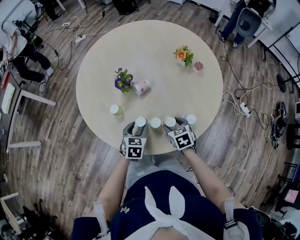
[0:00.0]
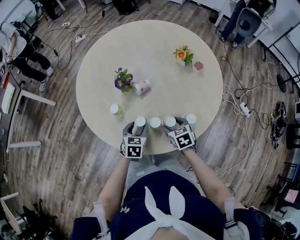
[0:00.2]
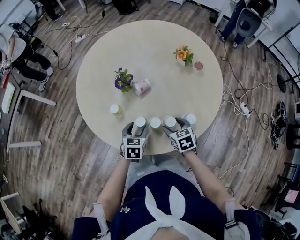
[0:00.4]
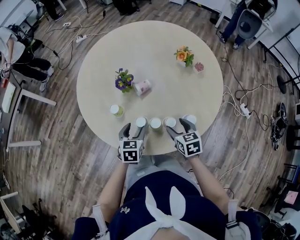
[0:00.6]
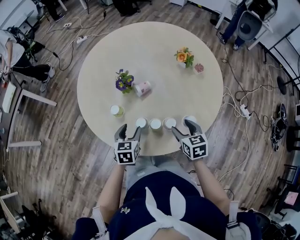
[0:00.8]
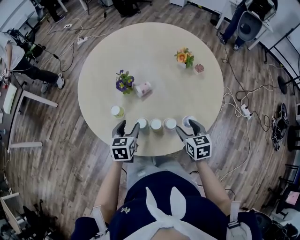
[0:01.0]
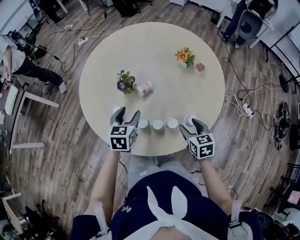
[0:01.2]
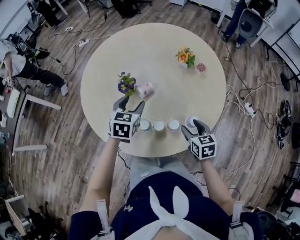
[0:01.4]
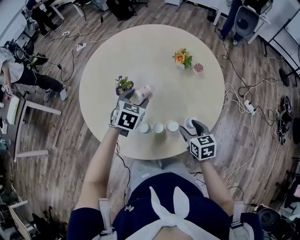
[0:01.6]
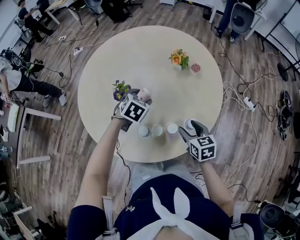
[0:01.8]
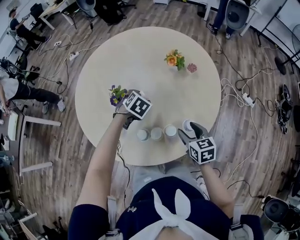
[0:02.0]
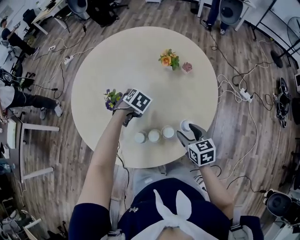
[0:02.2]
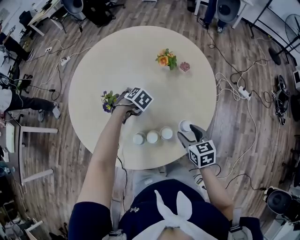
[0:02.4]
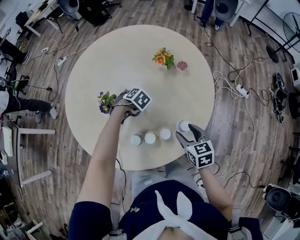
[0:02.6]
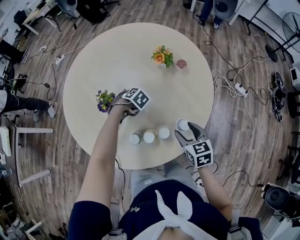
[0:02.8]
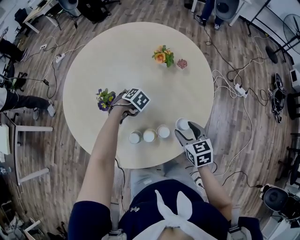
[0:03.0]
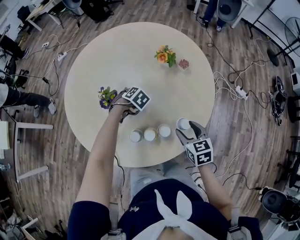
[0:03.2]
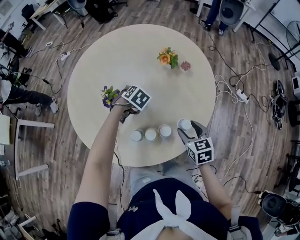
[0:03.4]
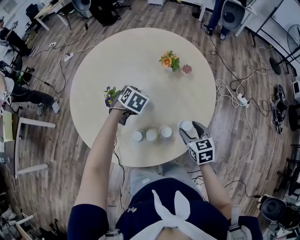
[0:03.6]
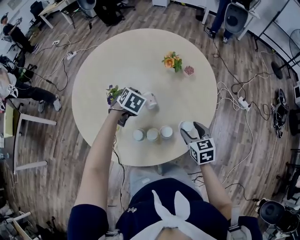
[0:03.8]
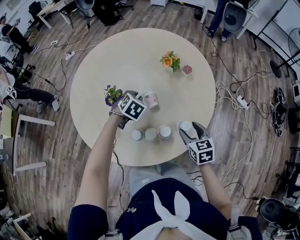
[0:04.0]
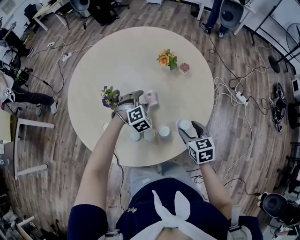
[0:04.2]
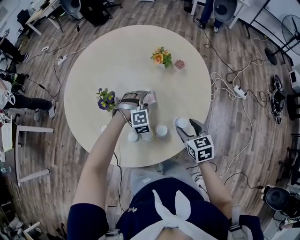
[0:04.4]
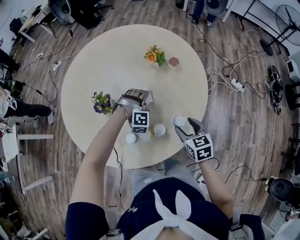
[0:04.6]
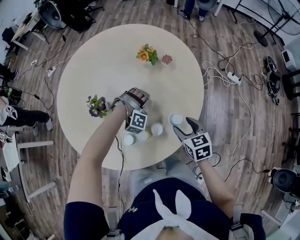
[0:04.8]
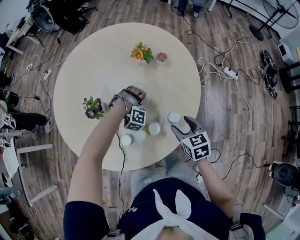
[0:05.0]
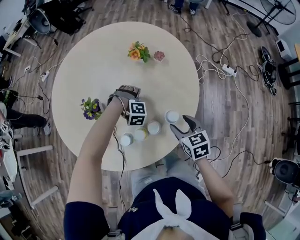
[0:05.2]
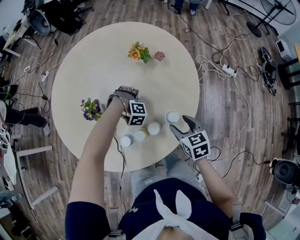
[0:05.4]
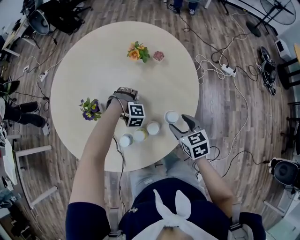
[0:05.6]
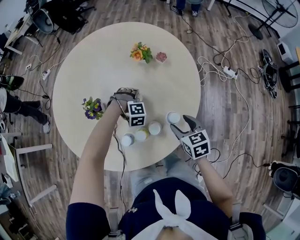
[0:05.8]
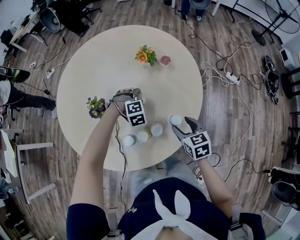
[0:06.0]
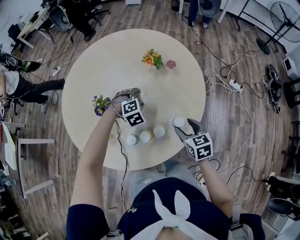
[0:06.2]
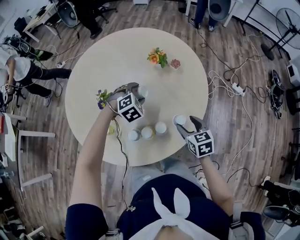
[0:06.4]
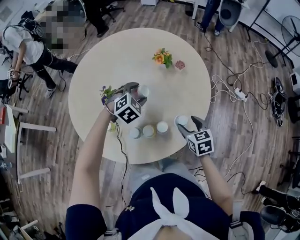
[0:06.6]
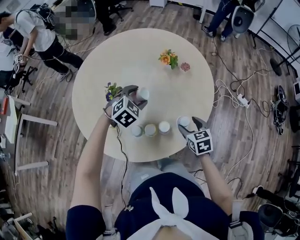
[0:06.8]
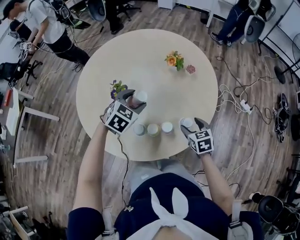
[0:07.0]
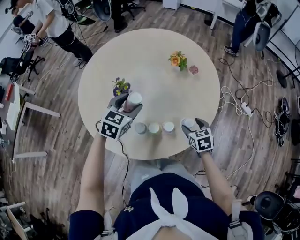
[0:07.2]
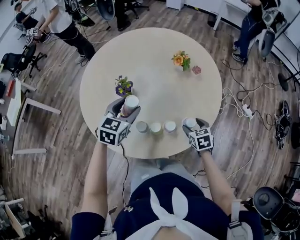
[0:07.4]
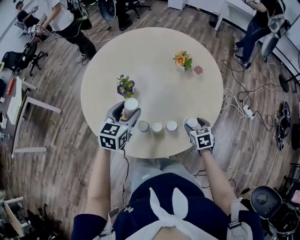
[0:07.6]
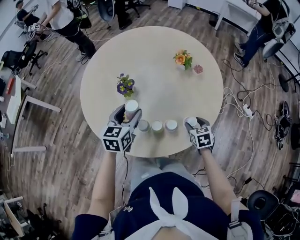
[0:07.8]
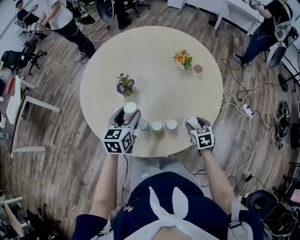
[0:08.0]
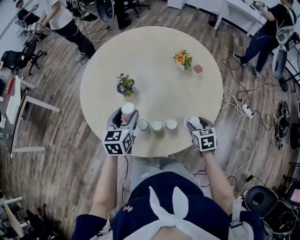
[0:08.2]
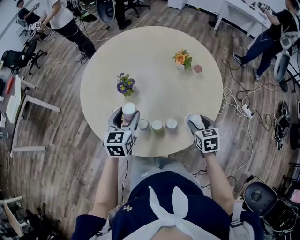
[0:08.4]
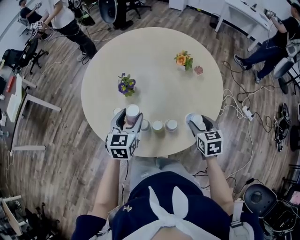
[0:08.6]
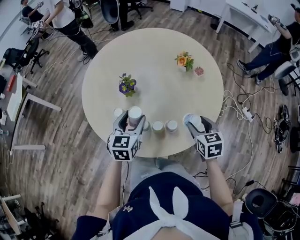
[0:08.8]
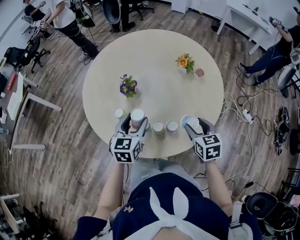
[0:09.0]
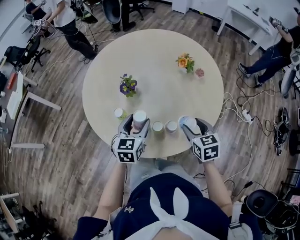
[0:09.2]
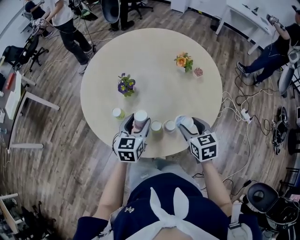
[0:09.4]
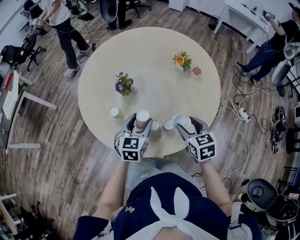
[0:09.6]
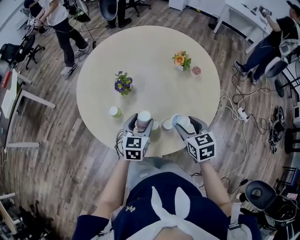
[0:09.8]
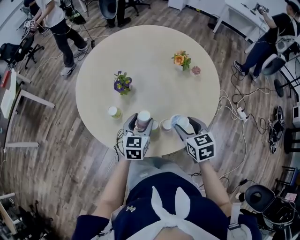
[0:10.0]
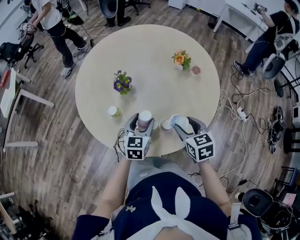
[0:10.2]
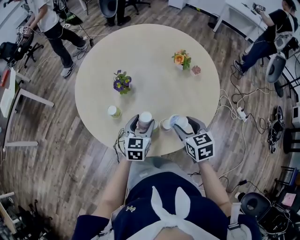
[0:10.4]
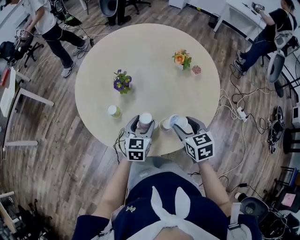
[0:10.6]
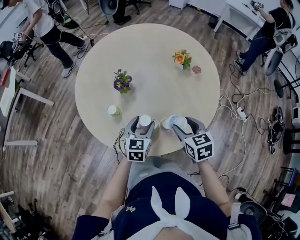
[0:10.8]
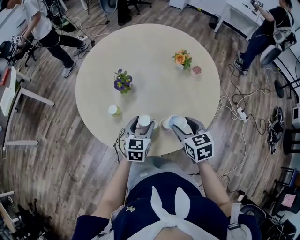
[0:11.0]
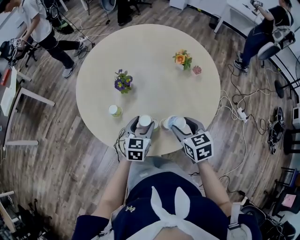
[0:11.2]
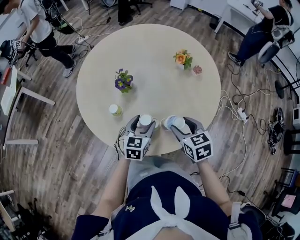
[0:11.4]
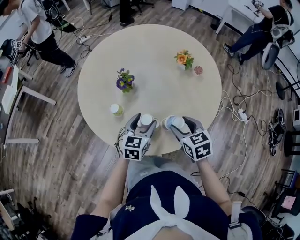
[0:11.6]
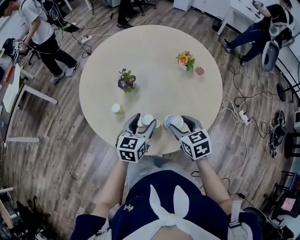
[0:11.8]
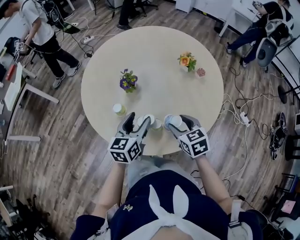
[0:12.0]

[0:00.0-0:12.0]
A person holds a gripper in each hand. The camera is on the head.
0:00.0 to 0:01.6: The right gripper travels upward and to the right by approximately 10 cm, while the left gripper is displaced forward and upward by some 20 cm, and turns by roughly 20 degrees.
0:01.6 to 0:03.0: The left gripper shifts roughly 15 cm downward, and points its fingers roughly 30 degrees further downward.
0:03.0 to 0:04.4: The left gripper changes place by some 10 cm, rolls clockwise, seen from behind, by approximately 40 degrees, and closes and opens again.
0:04.4 to 0:06.0: The left gripper moves some 10 cm downward and comes back.
0:06.0 to 0:07.6: The right gripper moves downward, roughly 5 cm, while the left gripper goes about 25 cm upward, to the left and backward, and rolls counterclockwise, seen from behind, by some 80 degrees.
0:07.6 to 0:09.0: The right gripper travels upward by about 10 cm.
0:09.0 to 0:10.4: The left gripper travels downward and to the right by about 10 cm.
0:10.4 to 0:12.0: The left gripper heads upward, covering roughly 5 cm.

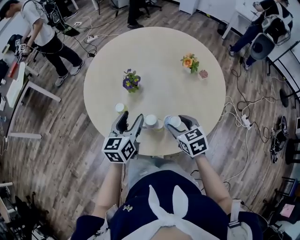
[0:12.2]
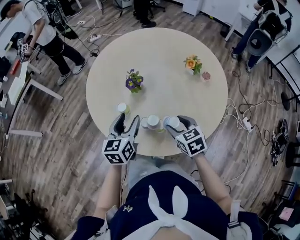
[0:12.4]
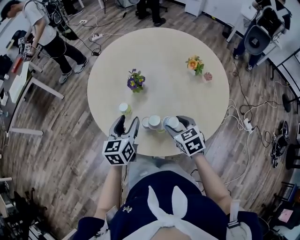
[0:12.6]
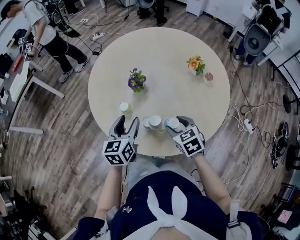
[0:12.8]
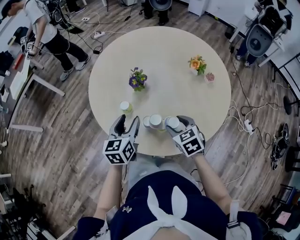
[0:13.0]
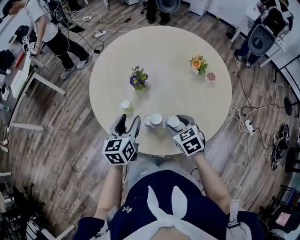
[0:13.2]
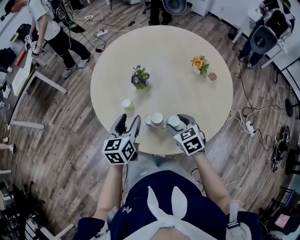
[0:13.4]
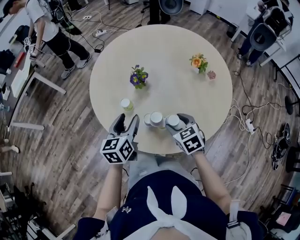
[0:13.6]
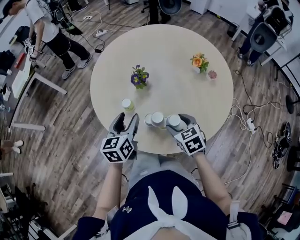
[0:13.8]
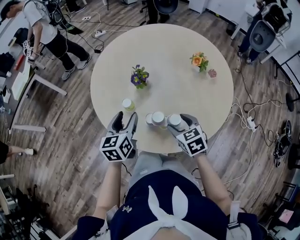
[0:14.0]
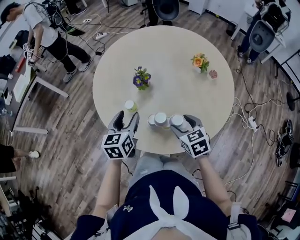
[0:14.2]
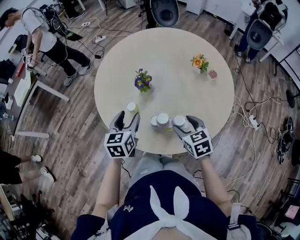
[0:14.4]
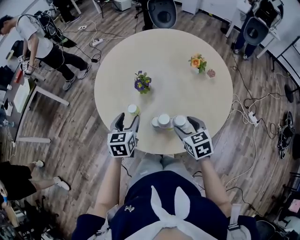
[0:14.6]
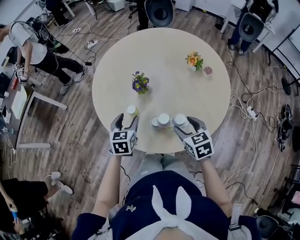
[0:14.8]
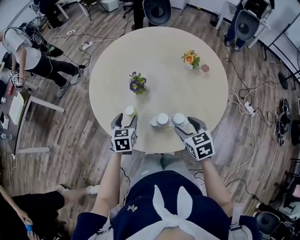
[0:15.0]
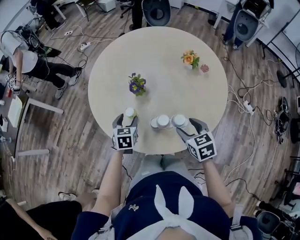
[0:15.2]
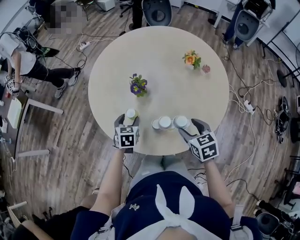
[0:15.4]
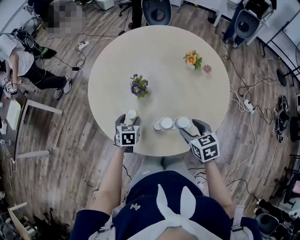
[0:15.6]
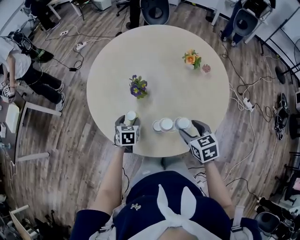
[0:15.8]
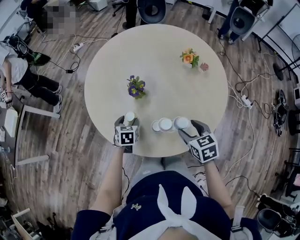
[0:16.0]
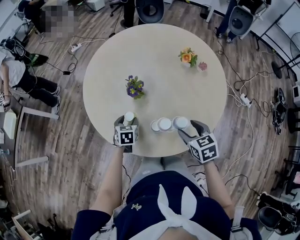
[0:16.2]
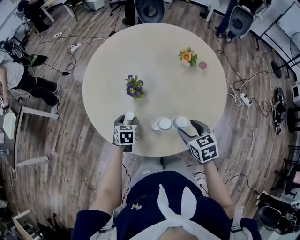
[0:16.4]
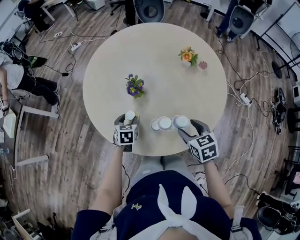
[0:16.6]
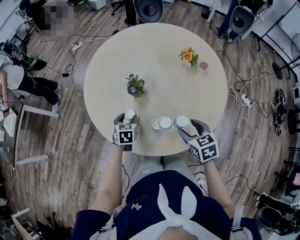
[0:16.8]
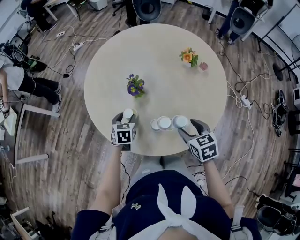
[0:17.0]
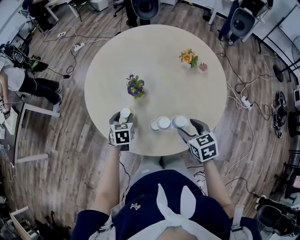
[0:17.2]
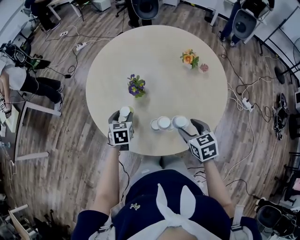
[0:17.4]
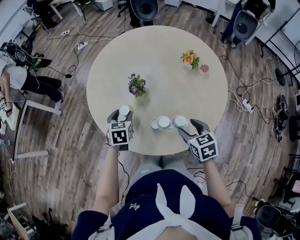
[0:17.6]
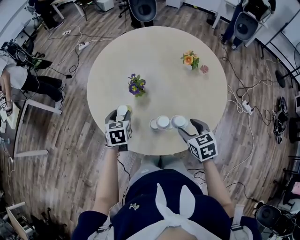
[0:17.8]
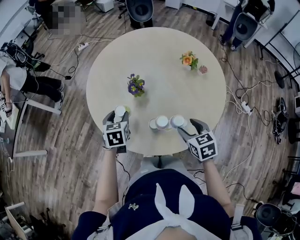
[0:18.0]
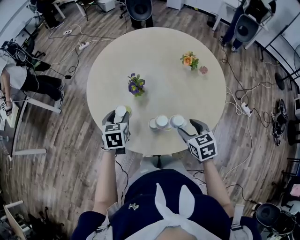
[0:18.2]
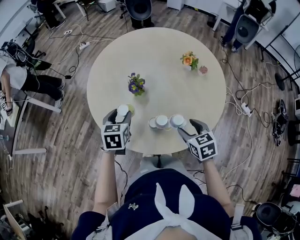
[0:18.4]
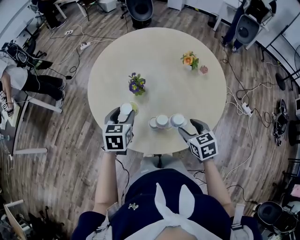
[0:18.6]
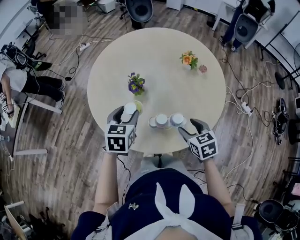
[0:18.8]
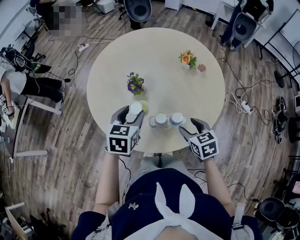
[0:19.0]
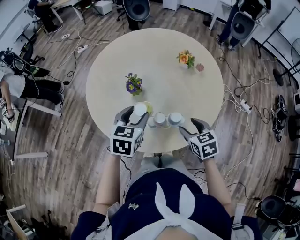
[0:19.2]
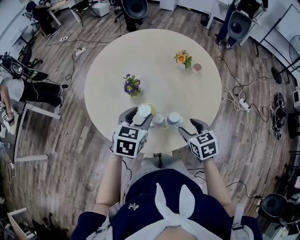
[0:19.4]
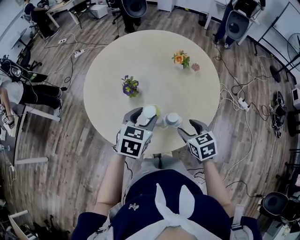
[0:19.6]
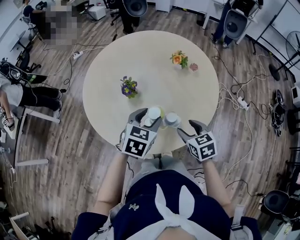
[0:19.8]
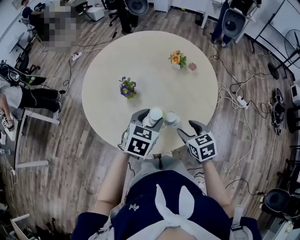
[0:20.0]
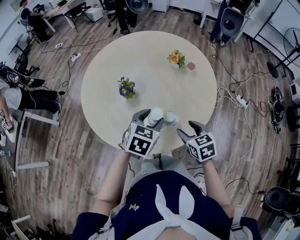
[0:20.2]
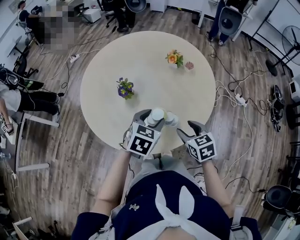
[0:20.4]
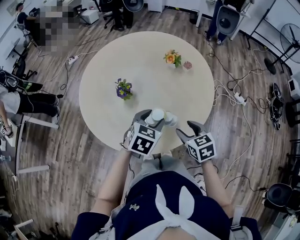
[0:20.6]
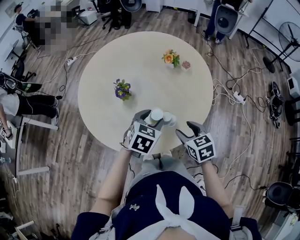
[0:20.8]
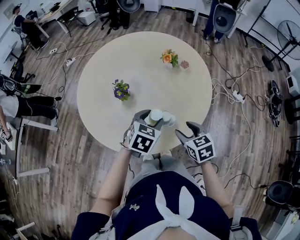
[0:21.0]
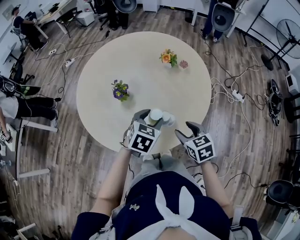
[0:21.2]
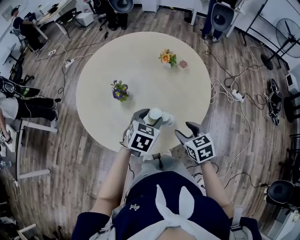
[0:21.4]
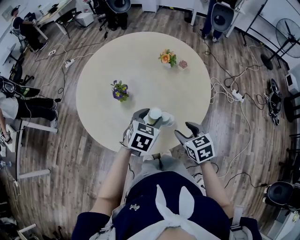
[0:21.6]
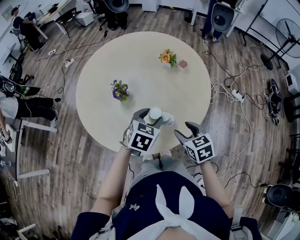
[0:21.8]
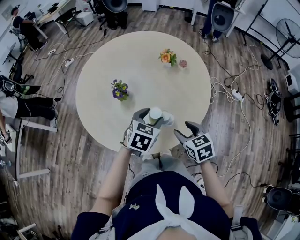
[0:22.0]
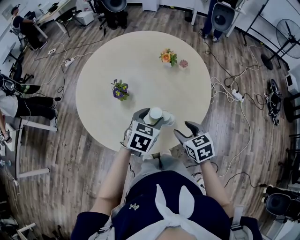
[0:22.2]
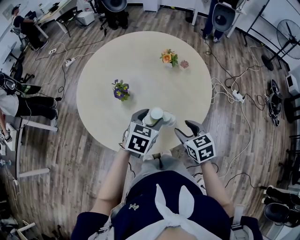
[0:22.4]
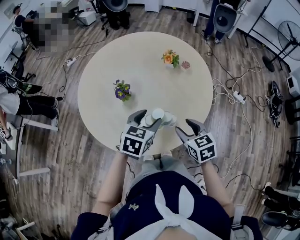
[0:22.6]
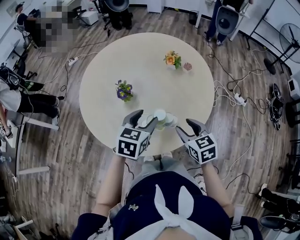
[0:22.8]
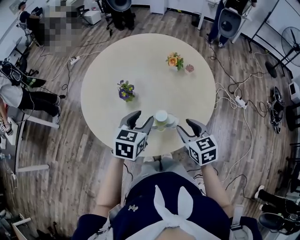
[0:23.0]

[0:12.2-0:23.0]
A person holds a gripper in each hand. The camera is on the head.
0:12.2 to 0:13.8: The left gripper goes some 5 cm to the left.
0:13.8 to 0:15.2: The left gripper shifts roughly 10 cm downward and forward, and rotates approximately 30 degrees. The right gripper ends up some 5 cm from where it was.
0:15.2 to 0:16.8: The left gripper ends up approximately 5 cm from where it was.
0:16.8 to 0:18.4: The left gripper heads upward, covering approximately 15 cm.
0:18.4 to 0:20.0: The left gripper travels to the right by approximately 20 cm, and swivels roughly 30 degrees.
0:20.0 to 0:21.4: The grippers make only small movements.
0:21.4 to 0:23.0: The right gripper moves some 5 cm. Meanwhile the left gripper heads to the left, covering approximately 5 cm.

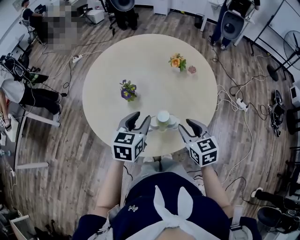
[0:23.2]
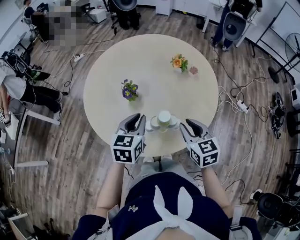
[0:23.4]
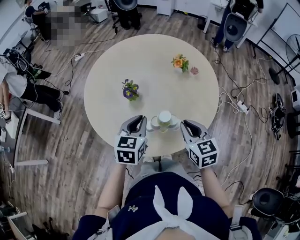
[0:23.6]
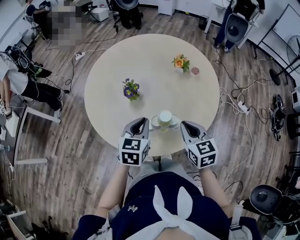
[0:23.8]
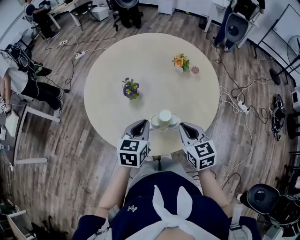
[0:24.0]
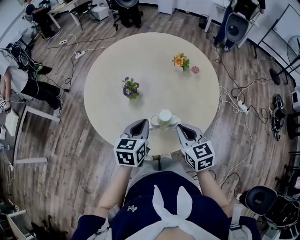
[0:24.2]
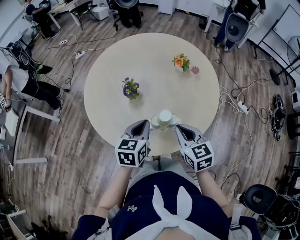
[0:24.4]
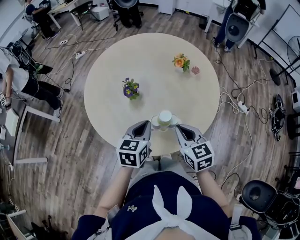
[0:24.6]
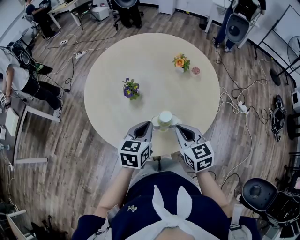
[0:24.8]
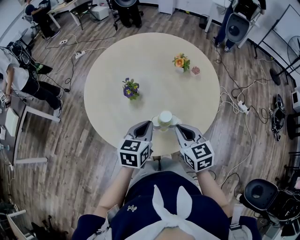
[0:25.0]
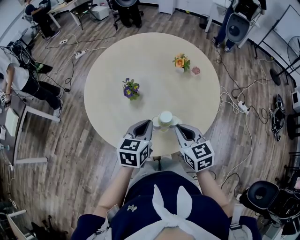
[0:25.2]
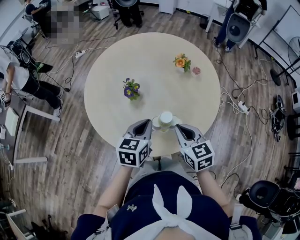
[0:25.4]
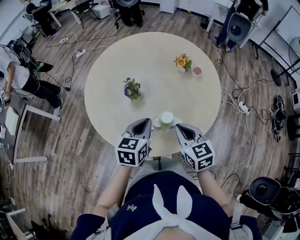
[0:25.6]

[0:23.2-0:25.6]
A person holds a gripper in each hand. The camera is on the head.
0:23.2 to 0:24.4: The right gripper closes, while the left gripper closes its fingers.
0:24.4 to 0:25.6: The two grippers keep their place.
